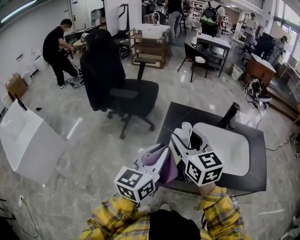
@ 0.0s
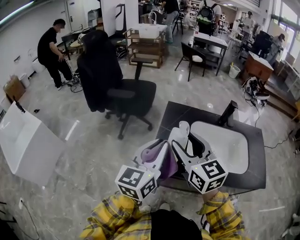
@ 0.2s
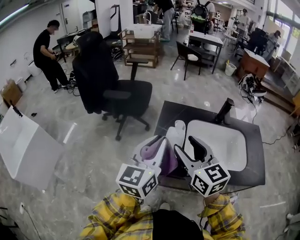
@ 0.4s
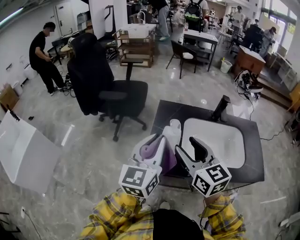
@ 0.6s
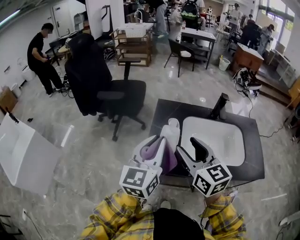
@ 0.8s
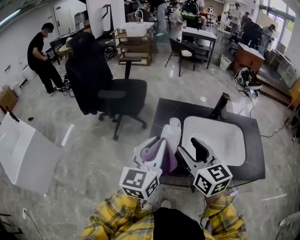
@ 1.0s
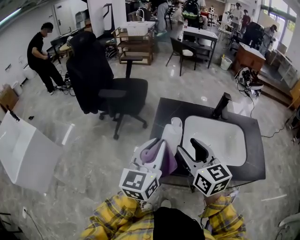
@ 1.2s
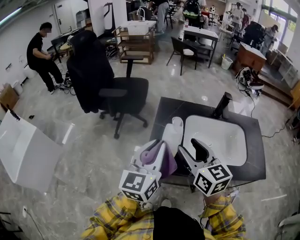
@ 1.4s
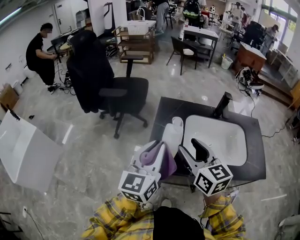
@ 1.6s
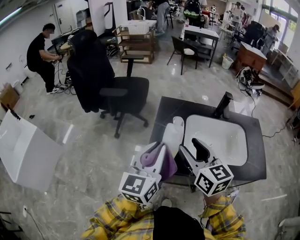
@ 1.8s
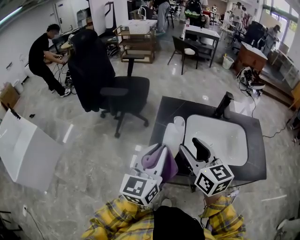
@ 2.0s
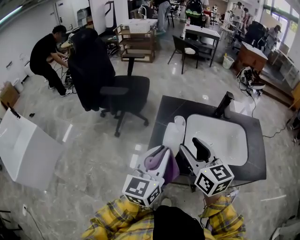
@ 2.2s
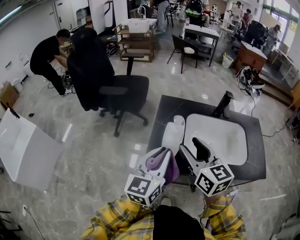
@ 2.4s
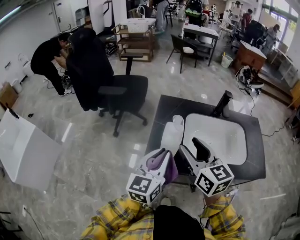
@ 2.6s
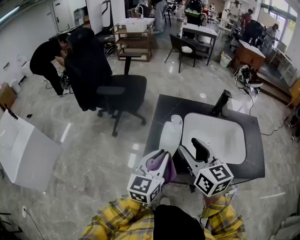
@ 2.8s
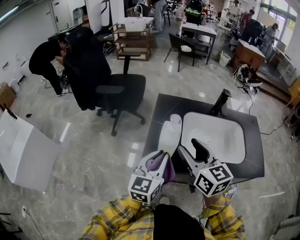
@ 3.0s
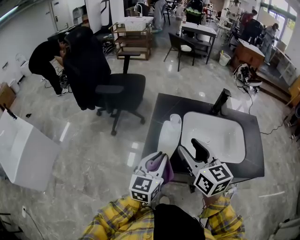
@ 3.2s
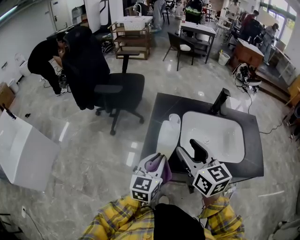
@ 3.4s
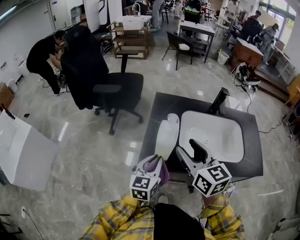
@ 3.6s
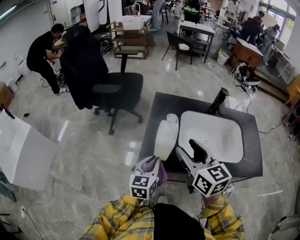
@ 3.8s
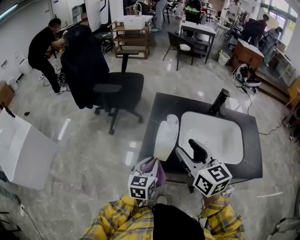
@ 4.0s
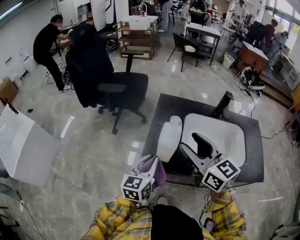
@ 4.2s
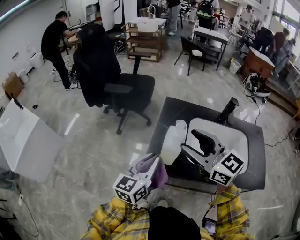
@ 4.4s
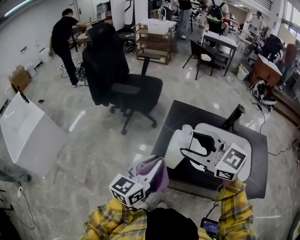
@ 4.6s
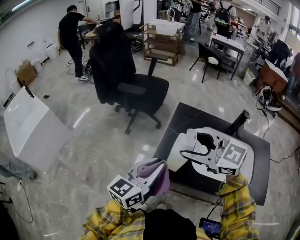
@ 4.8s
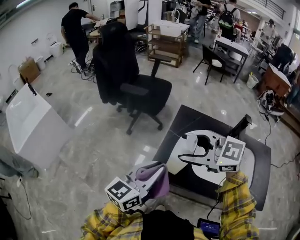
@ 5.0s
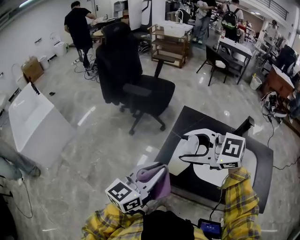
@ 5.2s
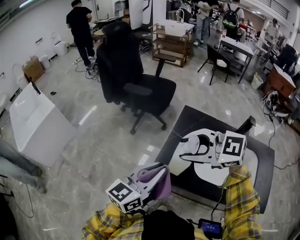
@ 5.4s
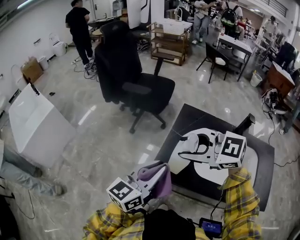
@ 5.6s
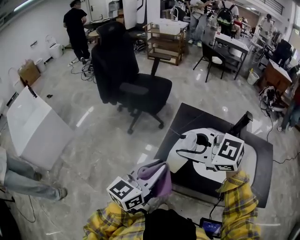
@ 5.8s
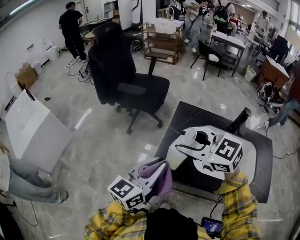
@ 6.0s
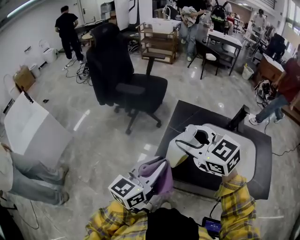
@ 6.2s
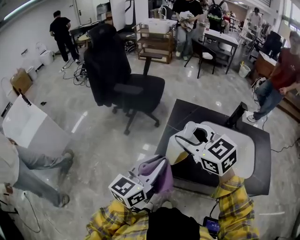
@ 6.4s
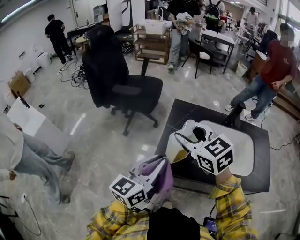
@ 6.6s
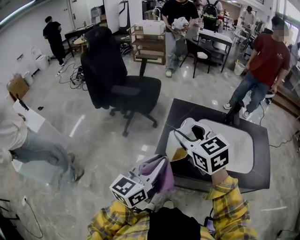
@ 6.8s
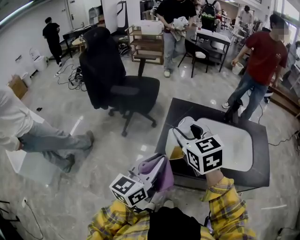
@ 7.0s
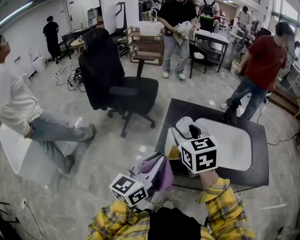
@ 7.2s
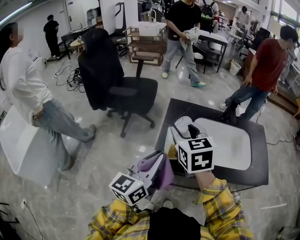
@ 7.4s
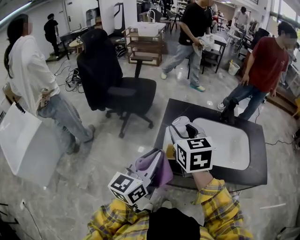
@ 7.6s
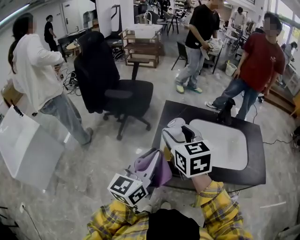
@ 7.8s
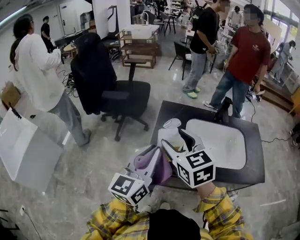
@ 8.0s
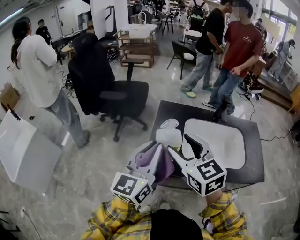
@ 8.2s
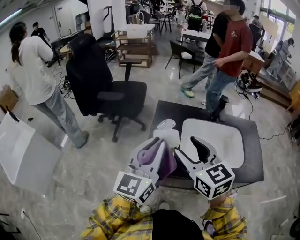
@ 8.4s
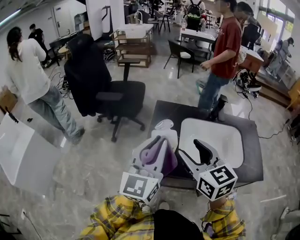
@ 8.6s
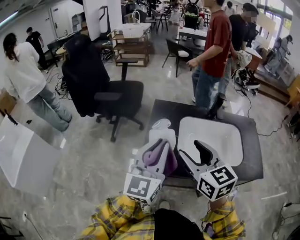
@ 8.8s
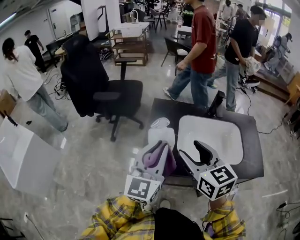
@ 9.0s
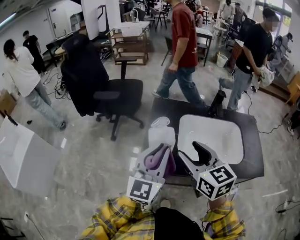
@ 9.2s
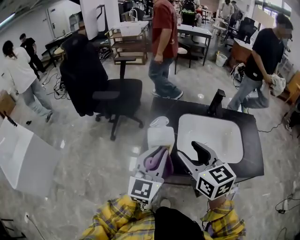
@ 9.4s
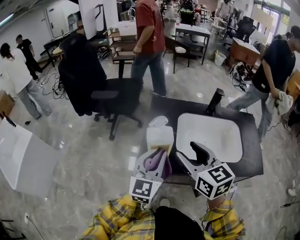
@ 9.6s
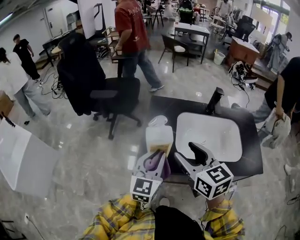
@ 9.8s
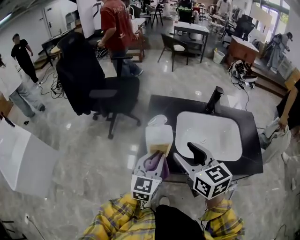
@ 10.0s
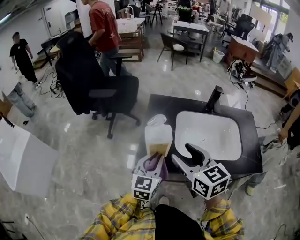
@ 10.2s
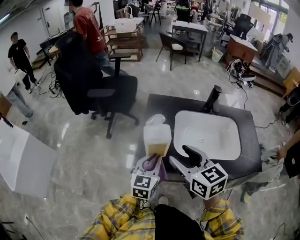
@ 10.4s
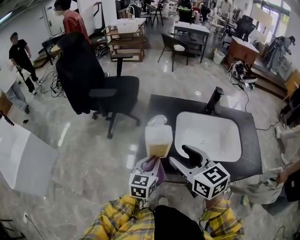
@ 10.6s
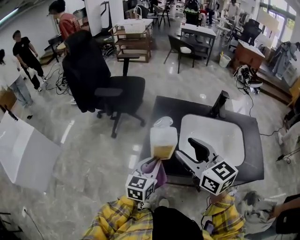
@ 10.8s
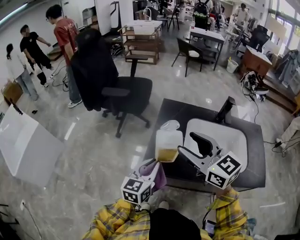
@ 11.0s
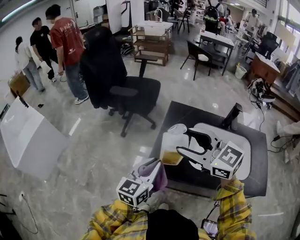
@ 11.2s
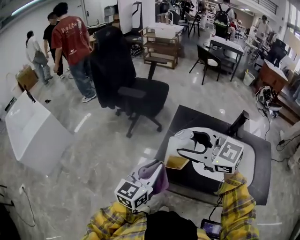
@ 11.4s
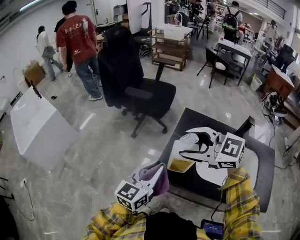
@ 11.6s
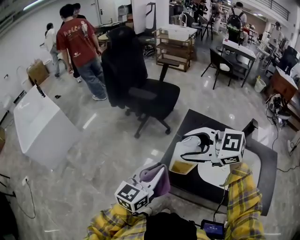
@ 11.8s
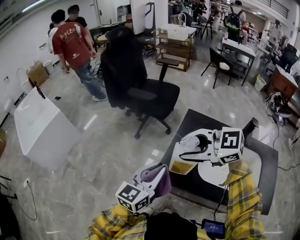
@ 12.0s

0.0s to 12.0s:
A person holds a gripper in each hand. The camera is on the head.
0.0s to 1.6s: The right gripper heads to the right, covering roughly 5 cm.
1.6s to 3.0s: The left gripper shifts about 10 cm downward.
3.0s to 4.4s: The left gripper reaches about 10 cm downward, then returns. Meanwhile the right gripper shifts by roughly 5 cm, and rotates approximately 30 degrees.
4.4s to 6.0s: The right gripper shifts by some 5 cm, and rotates about 30 degrees. Meanwhile the left gripper moves approximately 5 cm.
6.0s to 7.6s: The right gripper rotates some 50 degrees.
7.6s to 9.0s: The right gripper shifts some 10 cm to the right and backward; the left gripper moves to the right, approximately 10 cm, and swivels about 20 degrees.
9.0s to 10.4s: The left gripper moves downward, approximately 15 cm, and rotates about 20 degrees.
10.4s to 12.0s: The left gripper travels upward by roughly 10 cm. Meanwhile the right gripper ends up roughly 10 cm from where it was, and changes its angle by about 70 degrees.

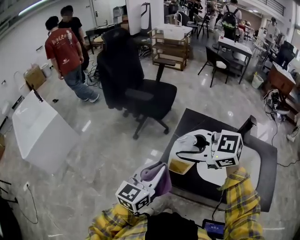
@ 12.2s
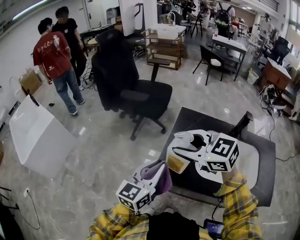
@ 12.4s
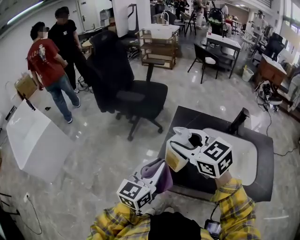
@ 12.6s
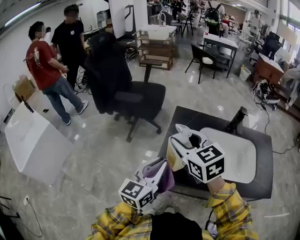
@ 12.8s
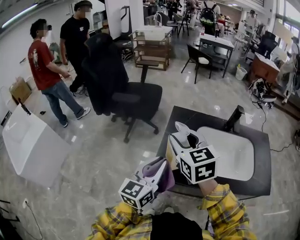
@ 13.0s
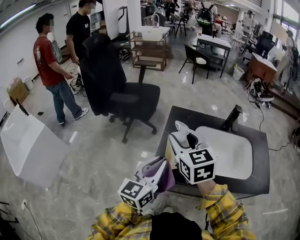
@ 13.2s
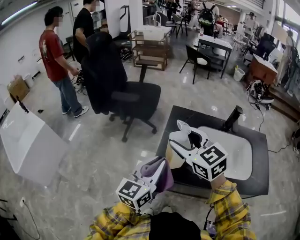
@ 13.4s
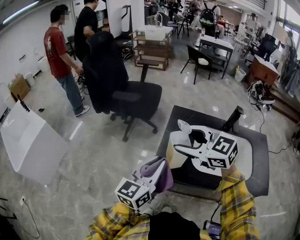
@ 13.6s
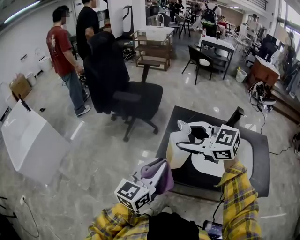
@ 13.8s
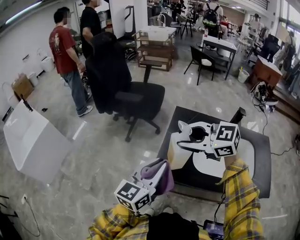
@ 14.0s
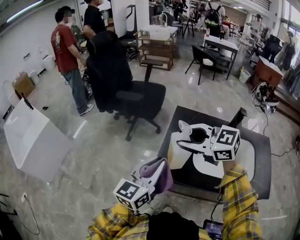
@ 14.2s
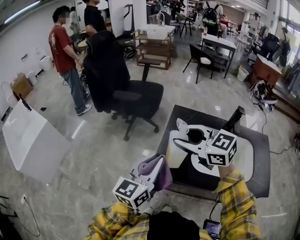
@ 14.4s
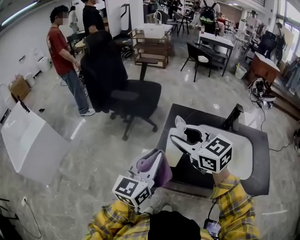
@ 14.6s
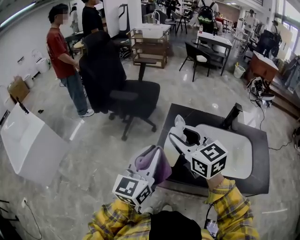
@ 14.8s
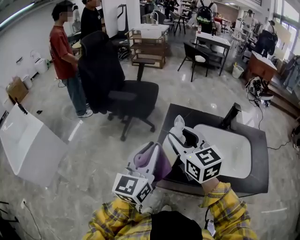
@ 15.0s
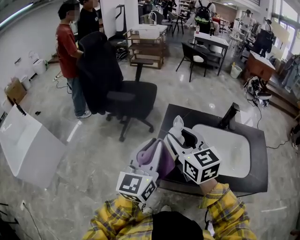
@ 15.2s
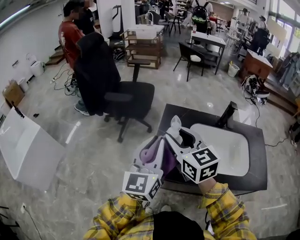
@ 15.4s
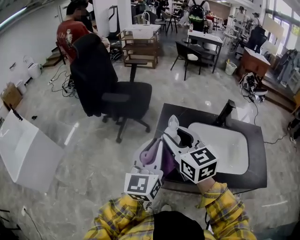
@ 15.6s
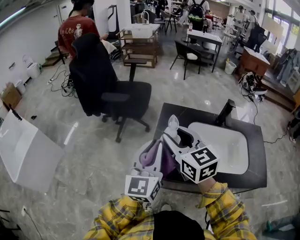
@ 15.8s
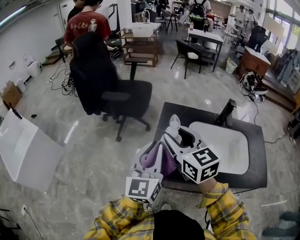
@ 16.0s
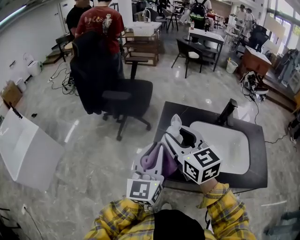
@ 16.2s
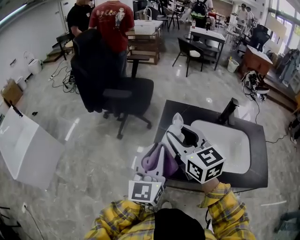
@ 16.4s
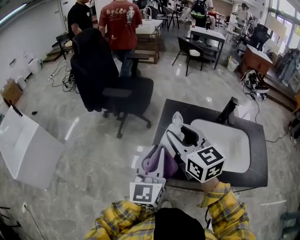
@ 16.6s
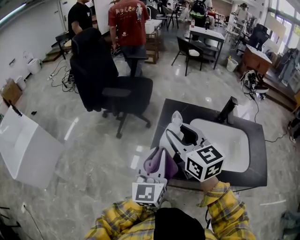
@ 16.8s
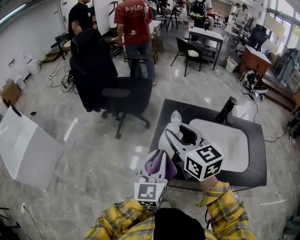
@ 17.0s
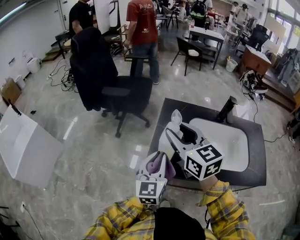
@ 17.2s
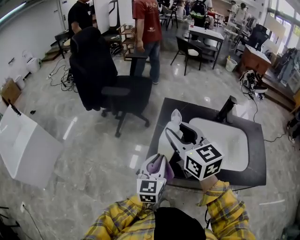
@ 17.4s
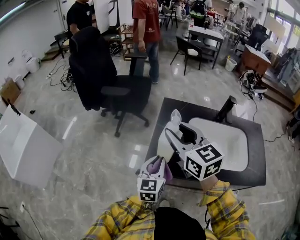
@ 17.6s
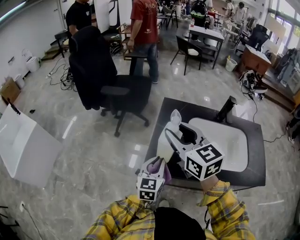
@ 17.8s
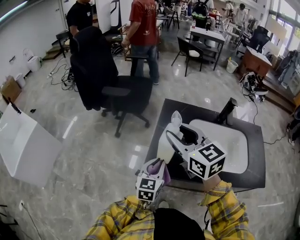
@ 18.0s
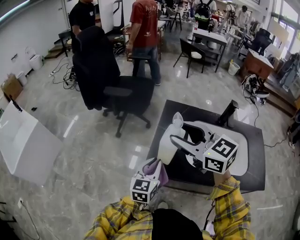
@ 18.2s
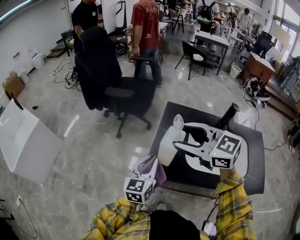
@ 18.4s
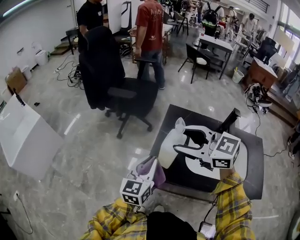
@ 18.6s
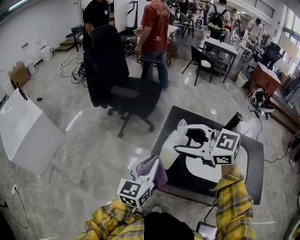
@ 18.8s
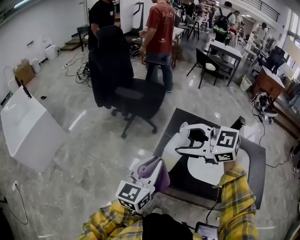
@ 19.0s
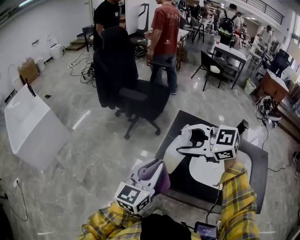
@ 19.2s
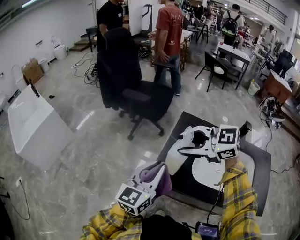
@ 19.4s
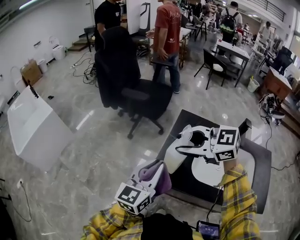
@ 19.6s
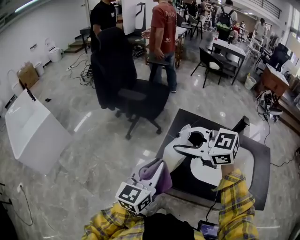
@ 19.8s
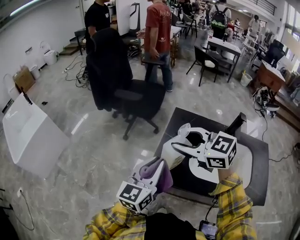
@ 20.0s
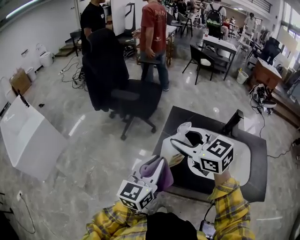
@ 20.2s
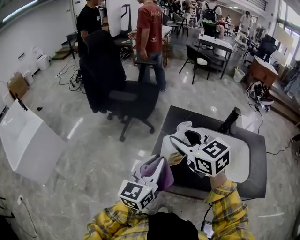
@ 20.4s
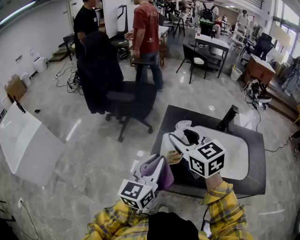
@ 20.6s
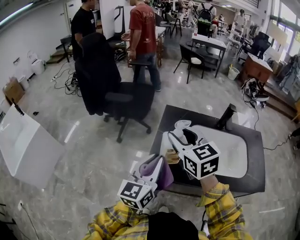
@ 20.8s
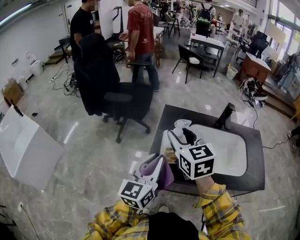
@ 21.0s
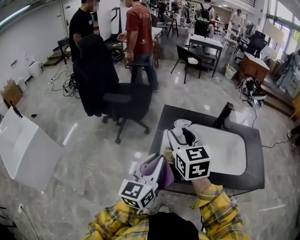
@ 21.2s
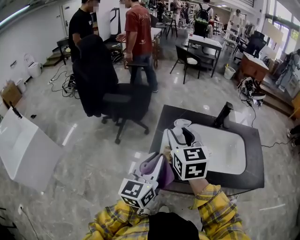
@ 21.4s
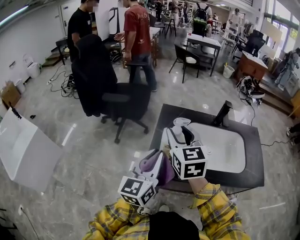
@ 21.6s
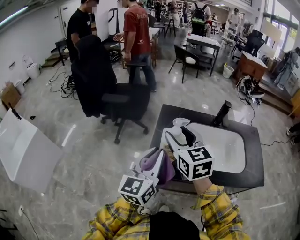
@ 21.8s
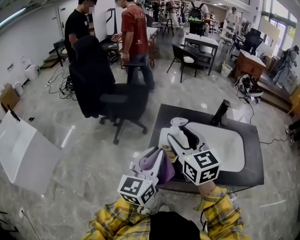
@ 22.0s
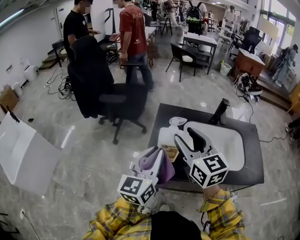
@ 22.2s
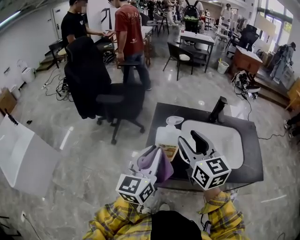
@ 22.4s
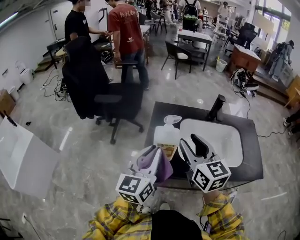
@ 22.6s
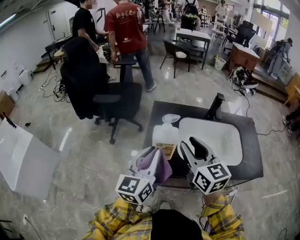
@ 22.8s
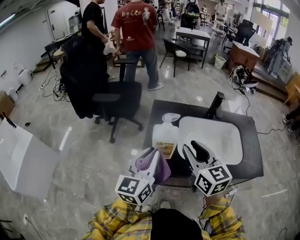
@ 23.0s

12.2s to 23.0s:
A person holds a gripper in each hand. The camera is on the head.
13.8s to 15.2s: The right gripper turns by some 40 degrees, while the left gripper moves upward, about 5 cm.
15.2s to 16.8s: The left gripper shifts approximately 5 cm downward.
16.8s to 18.4s: The right gripper swivels approximately 30 degrees. Meanwhile the left gripper heads downward, covering approximately 10 cm.
18.4s to 20.0s: The left gripper goes some 5 cm upward.
20.0s to 21.4s: The right gripper changes its angle by roughly 50 degrees.
21.4s to 23.0s: The right gripper heads to the right and backward, covering about 10 cm.

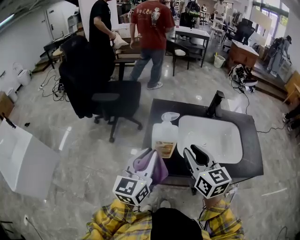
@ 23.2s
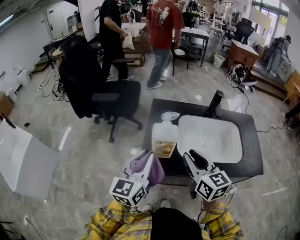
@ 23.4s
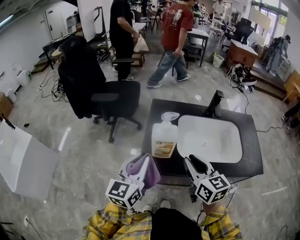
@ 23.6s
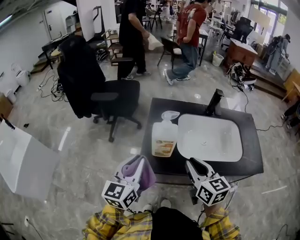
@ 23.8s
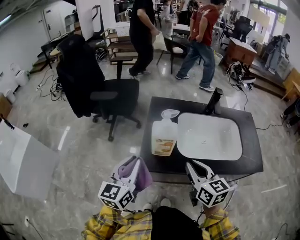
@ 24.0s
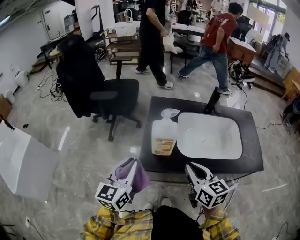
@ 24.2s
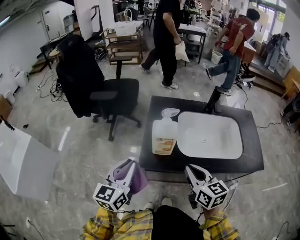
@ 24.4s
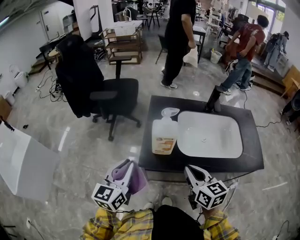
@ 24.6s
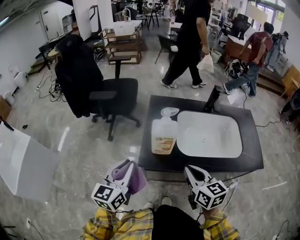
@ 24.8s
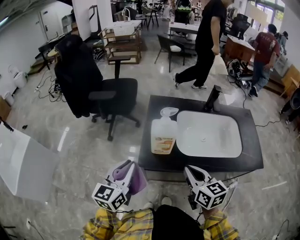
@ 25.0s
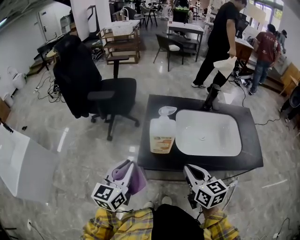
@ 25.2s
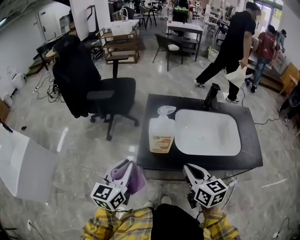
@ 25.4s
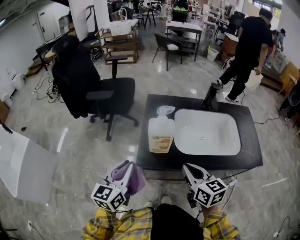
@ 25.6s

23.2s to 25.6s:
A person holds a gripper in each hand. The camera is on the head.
23.2s to 24.4s: The right gripper is displaced downward and backward by about 10 cm, and closes. The left gripper is displaced to the left by some 10 cm.
24.4s to 25.6s: The grippers stay close to where they were, moving slightly.
